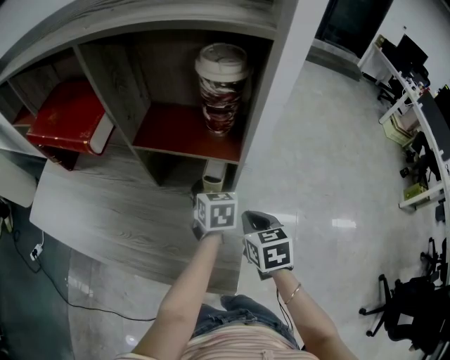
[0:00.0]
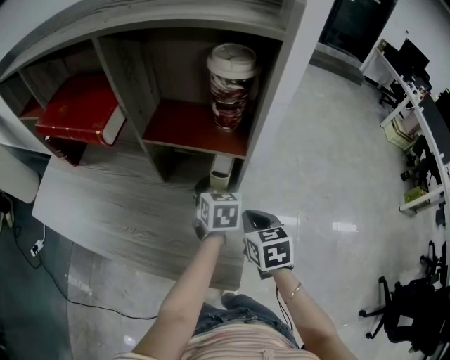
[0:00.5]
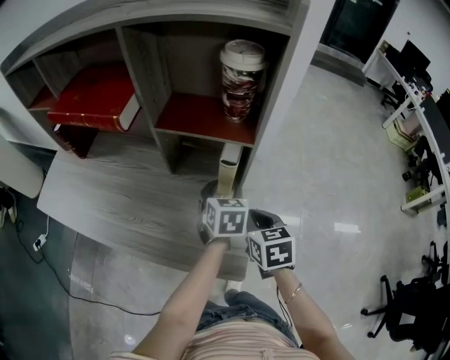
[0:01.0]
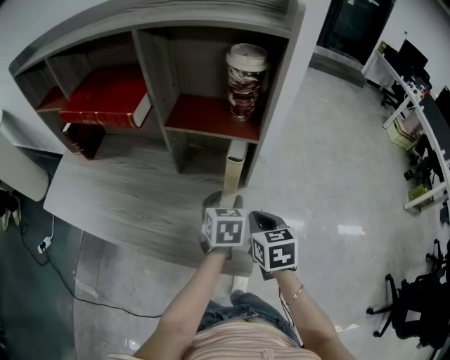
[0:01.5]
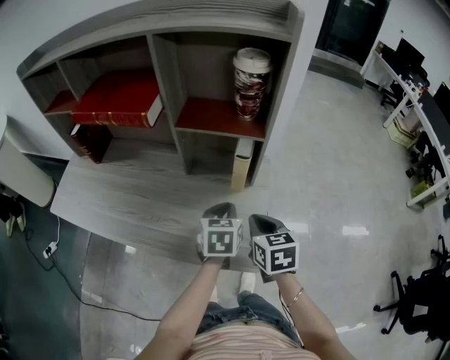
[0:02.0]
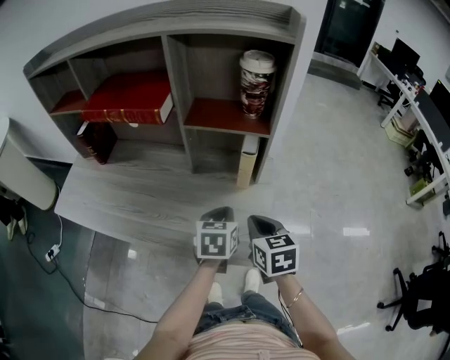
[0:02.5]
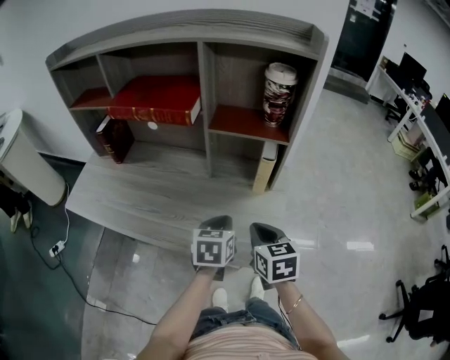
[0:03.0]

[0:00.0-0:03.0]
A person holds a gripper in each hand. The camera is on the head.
0:00.0 to 0:01.5: The right gripper shifts about 5 cm backward; the left gripper shifts about 10 cm backward.
0:01.5 to 0:03.0: The two grippers go roughly 15 cm to the left and backward. The left gripper closes its fingers.

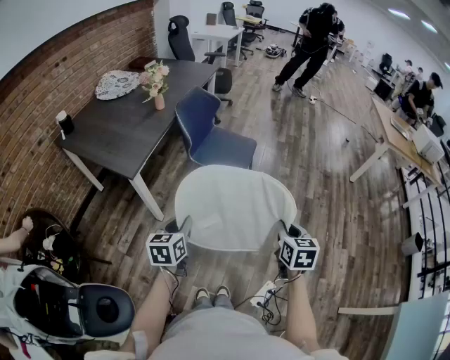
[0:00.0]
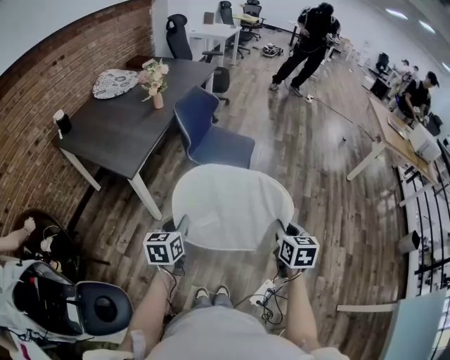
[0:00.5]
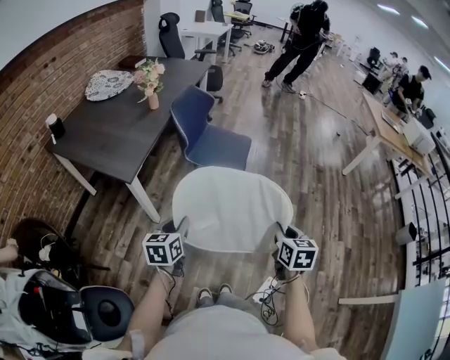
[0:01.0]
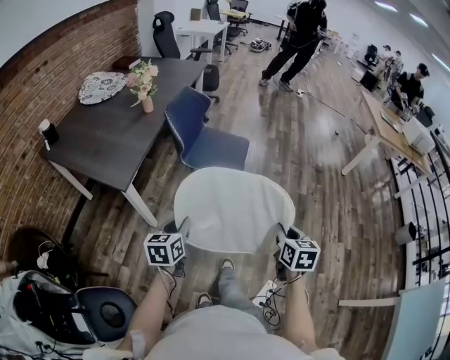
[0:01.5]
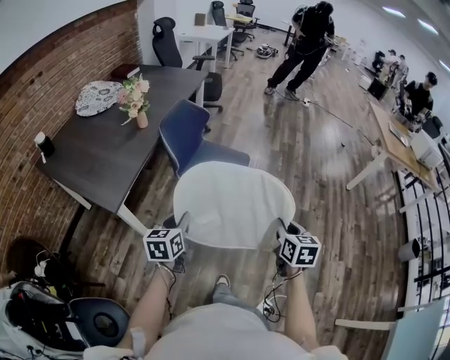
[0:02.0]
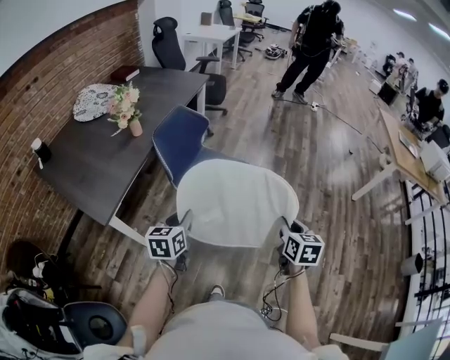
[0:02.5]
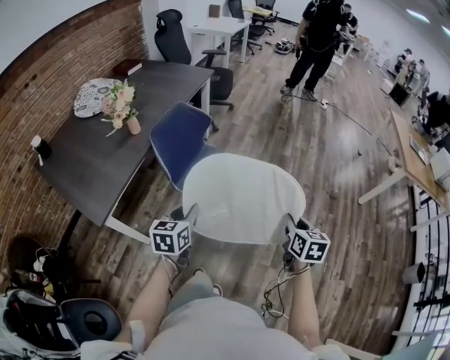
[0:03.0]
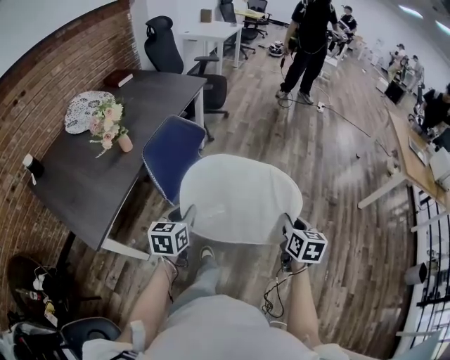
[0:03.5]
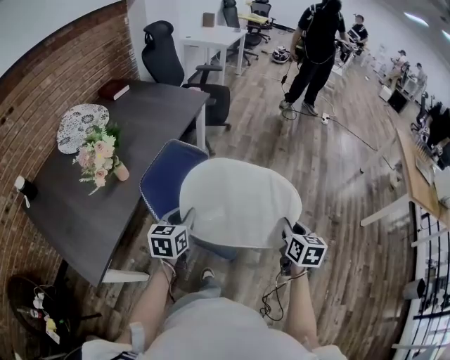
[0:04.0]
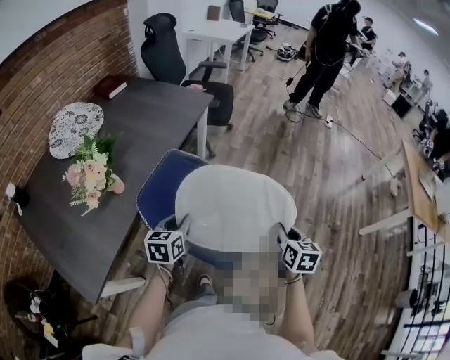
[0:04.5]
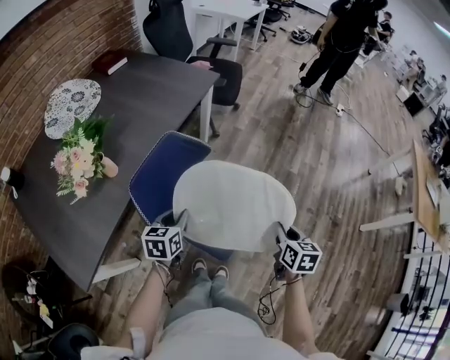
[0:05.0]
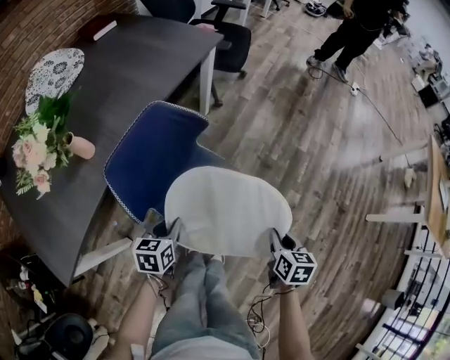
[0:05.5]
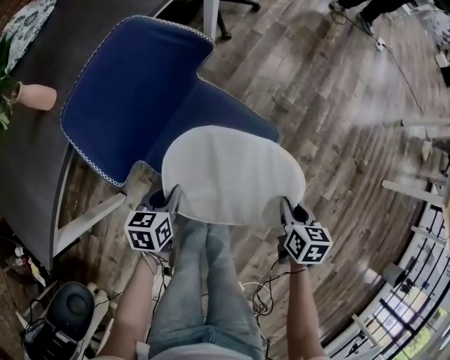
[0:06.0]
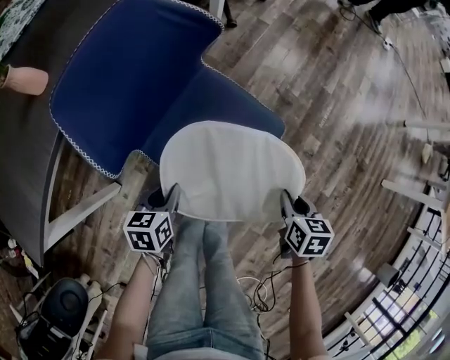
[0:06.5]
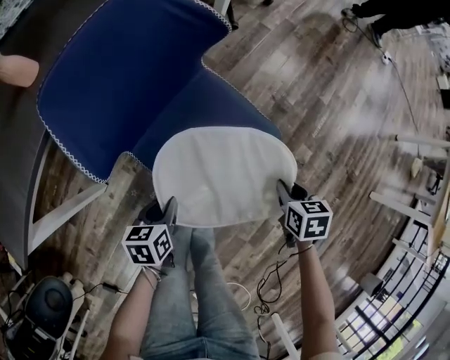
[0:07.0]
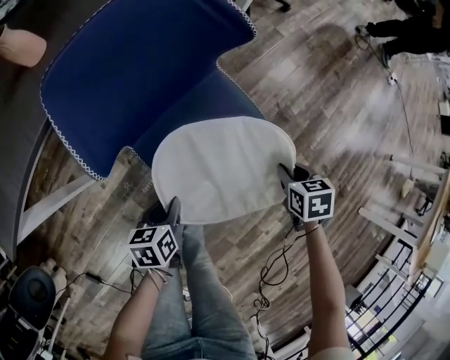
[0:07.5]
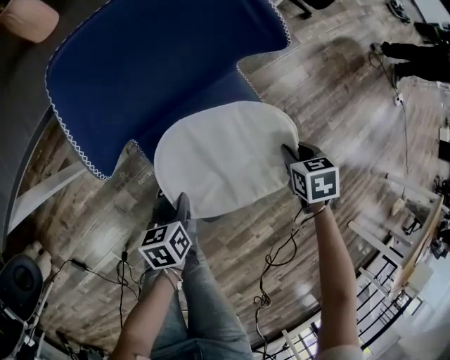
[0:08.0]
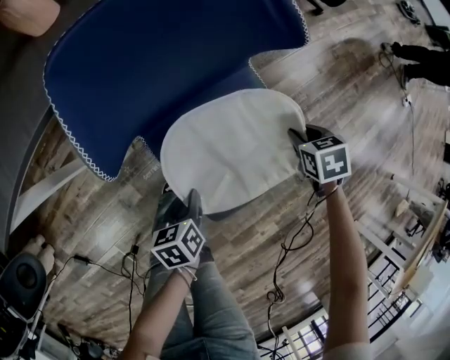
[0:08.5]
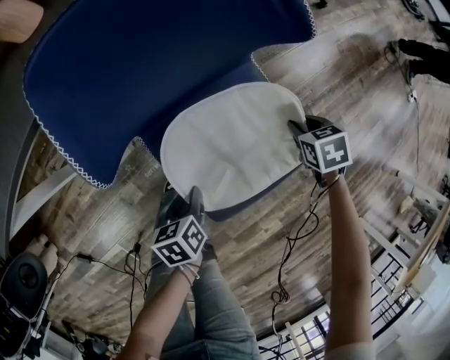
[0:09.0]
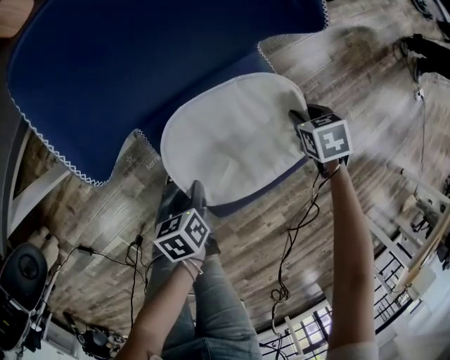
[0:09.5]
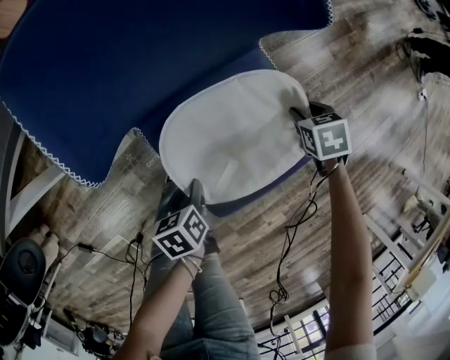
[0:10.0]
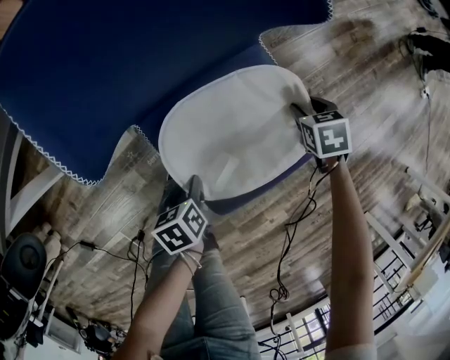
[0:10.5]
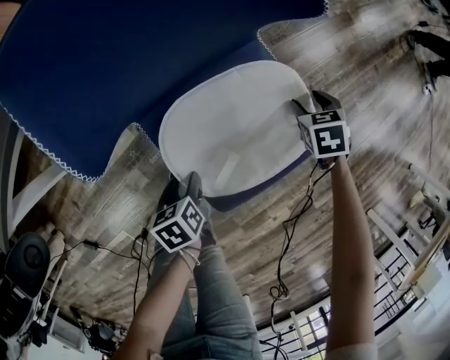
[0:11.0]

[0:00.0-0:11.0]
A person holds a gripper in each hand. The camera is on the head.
0:00.0 to 0:02.0: Both grippers move forward, some 20 cm.
0:02.0 to 0:03.5: Both grippers travel together forward, some 25 cm.
0:03.5 to 0:05.5: The right gripper travels forward and downward by roughly 30 cm; the left gripper shifts some 25 cm downward and forward, and changes its angle by some 20 degrees.
0:05.5 to 0:07.5: The right gripper moves downward and forward, about 25 cm, and changes its angle by approximately 40 degrees; the left gripper is displaced downward by roughly 20 cm, and turns by roughly 30 degrees.
0:07.5 to 0:09.0: The right gripper changes place by approximately 15 cm, and changes its angle by about 20 degrees. The left gripper shifts approximately 5 cm downward, and changes its angle by roughly 20 degrees.
0:09.0 to 0:11.0: The right gripper opens. The left gripper opens its fingers.

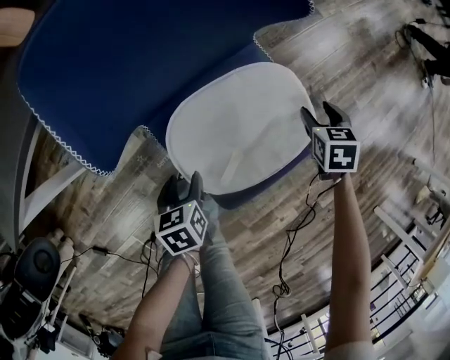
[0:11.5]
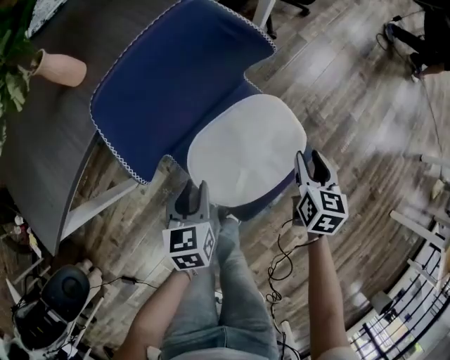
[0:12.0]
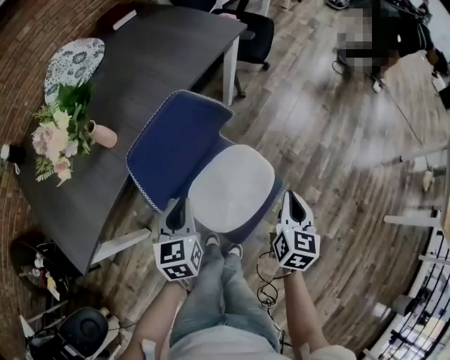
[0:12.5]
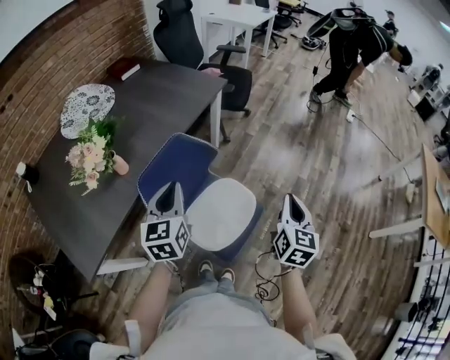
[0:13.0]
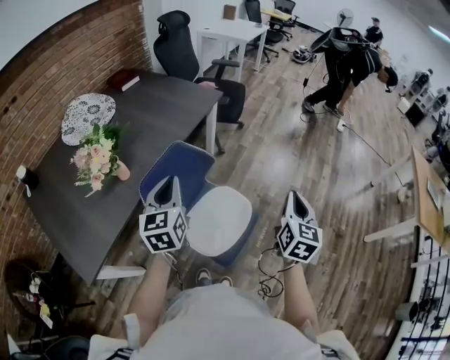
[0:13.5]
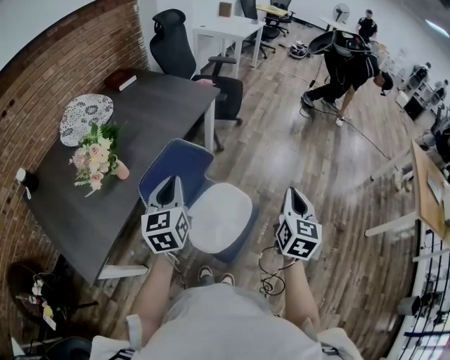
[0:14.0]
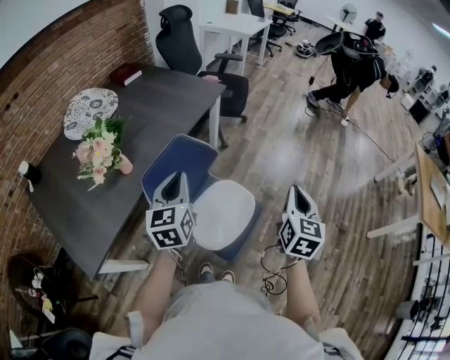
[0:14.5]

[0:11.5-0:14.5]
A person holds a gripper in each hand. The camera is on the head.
0:11.5 to 0:13.0: The right gripper moves upward and backward, roughly 50 cm, tilts its fingers approximately 40 degrees upward, and closes up, while the left gripper is displaced upward by some 50 cm, tilts its fingers roughly 50 degrees upward, and closes.
0:13.0 to 0:14.5: There are only small adjustments of the grippers.

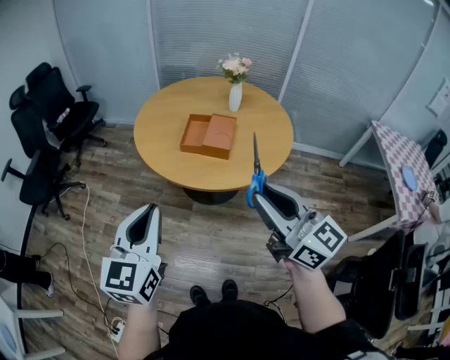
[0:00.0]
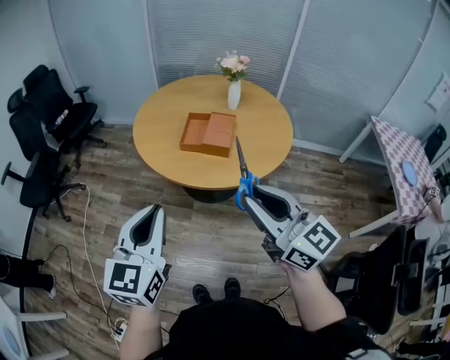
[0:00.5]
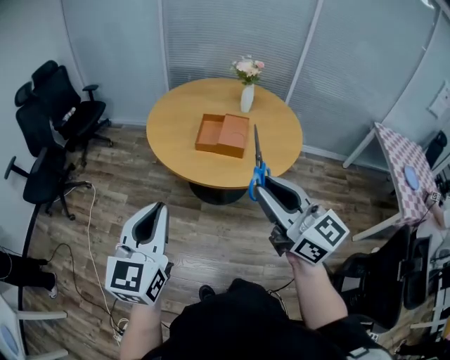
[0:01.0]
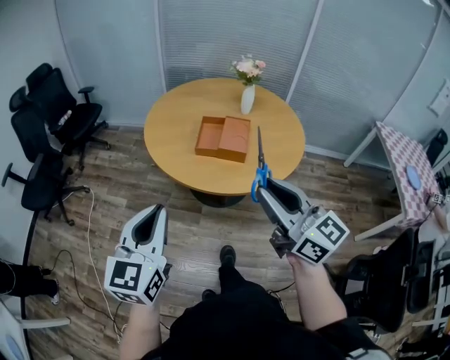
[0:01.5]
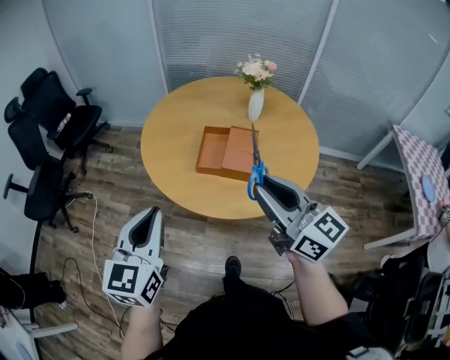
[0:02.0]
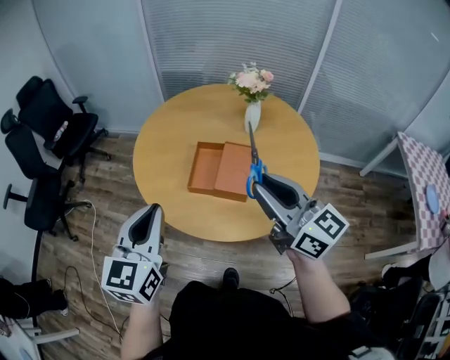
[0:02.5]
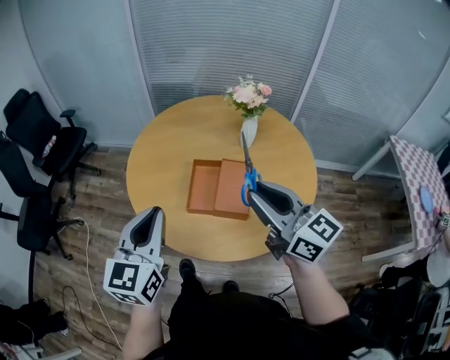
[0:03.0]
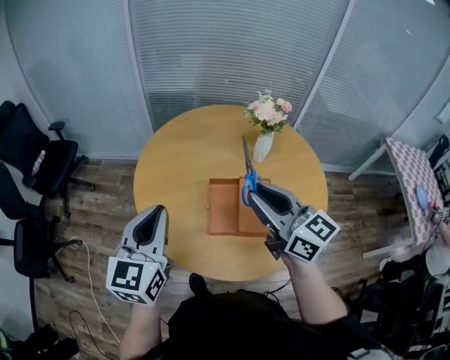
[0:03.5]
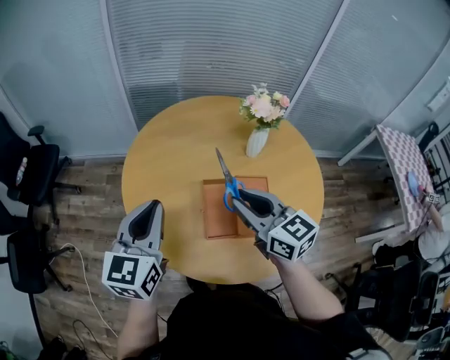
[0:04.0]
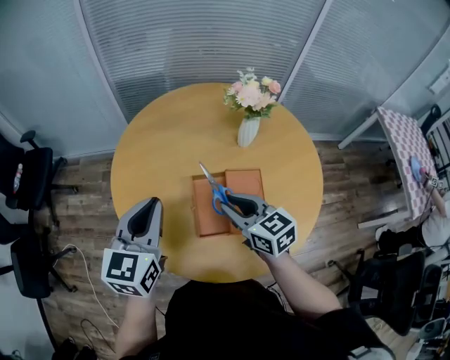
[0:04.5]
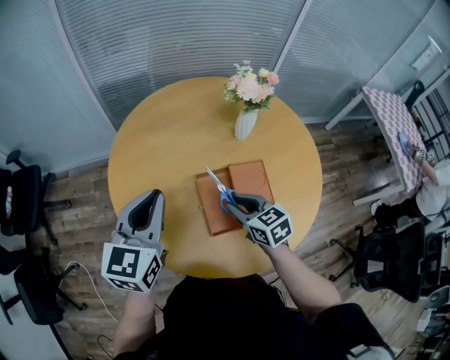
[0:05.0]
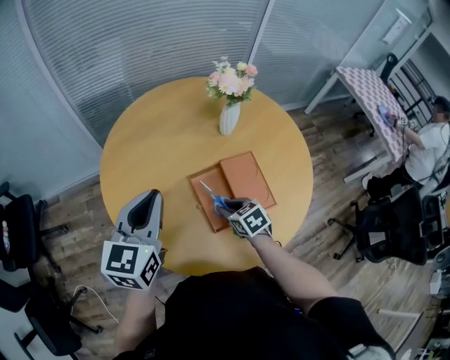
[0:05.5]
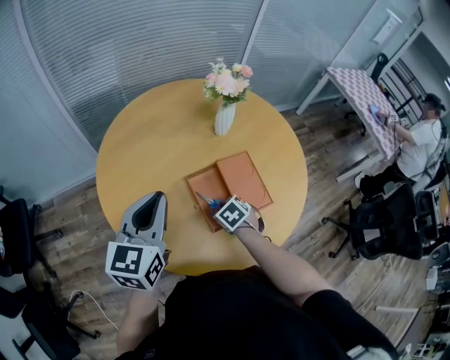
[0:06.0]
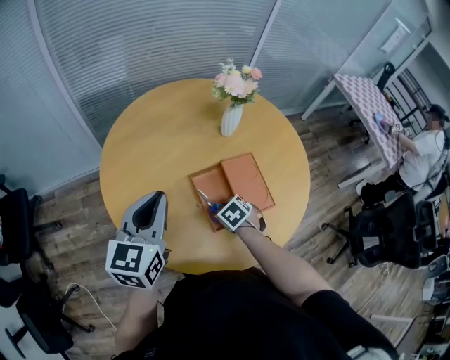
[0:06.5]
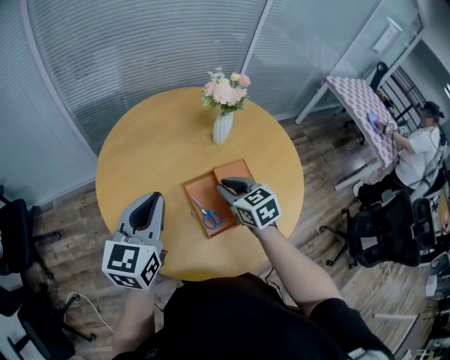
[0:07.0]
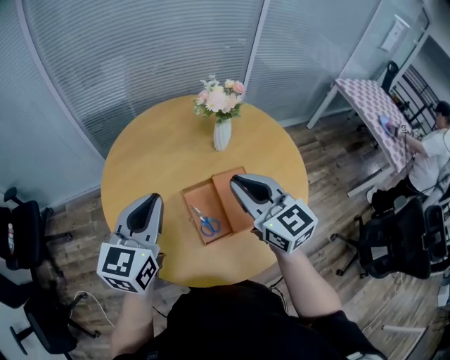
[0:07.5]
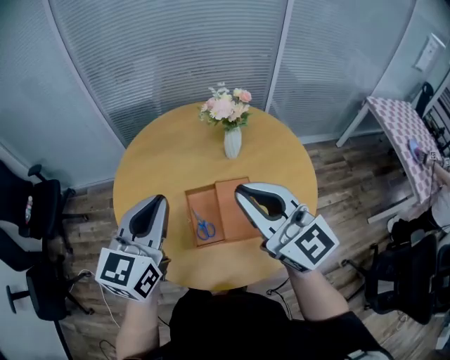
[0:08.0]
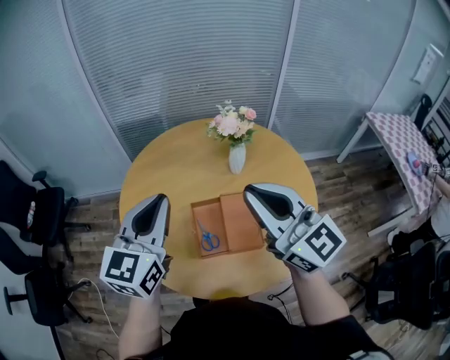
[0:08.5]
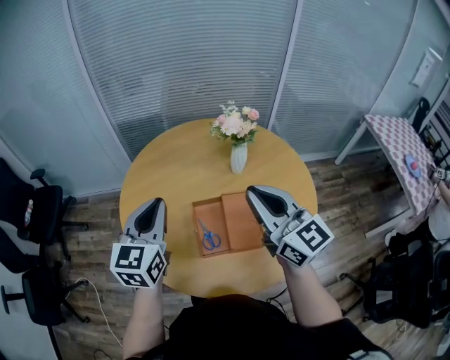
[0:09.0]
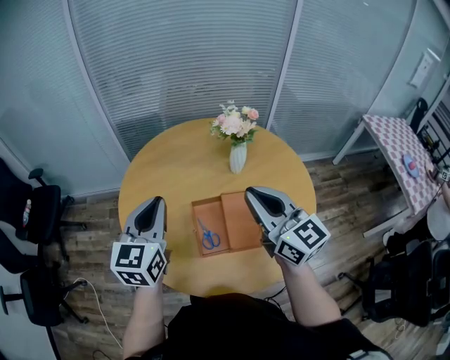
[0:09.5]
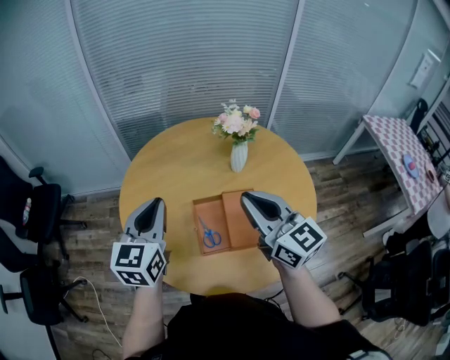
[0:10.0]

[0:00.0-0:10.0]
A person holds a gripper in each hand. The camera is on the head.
0:00.0 to 0:02.0: The two grippers go roughly 20 cm forward.
0:02.0 to 0:04.0: The two grippers go about 35 cm forward. The right gripper turns by some 20 degrees.
0:04.0 to 0:06.0: The left gripper shifts about 5 cm forward, and swivels roughly 20 degrees. Meanwhile the right gripper is displaced downward by some 30 cm, and tips its fingers downward by approximately 60 degrees.
0:06.0 to 0:08.0: The right gripper travels upward by roughly 40 cm, and tips its fingers upward by approximately 80 degrees; the left gripper shifts some 15 cm to the right and upward.
0:08.0 to 0:10.0: The left gripper shifts roughly 5 cm to the left.
